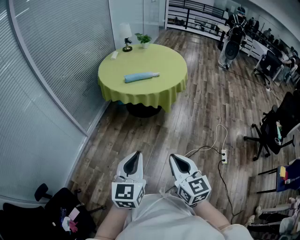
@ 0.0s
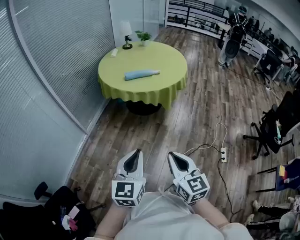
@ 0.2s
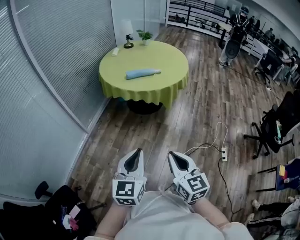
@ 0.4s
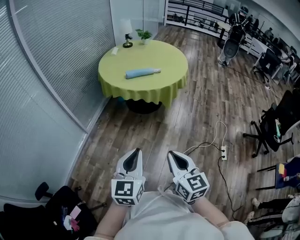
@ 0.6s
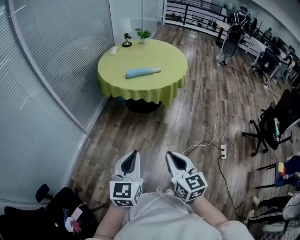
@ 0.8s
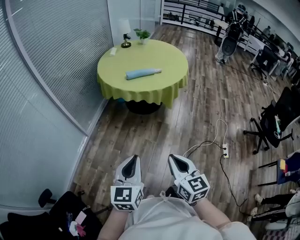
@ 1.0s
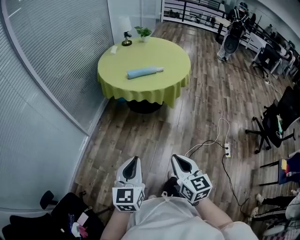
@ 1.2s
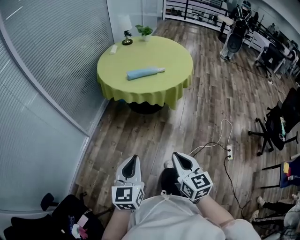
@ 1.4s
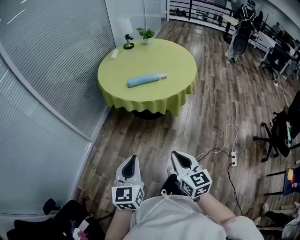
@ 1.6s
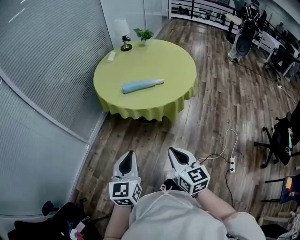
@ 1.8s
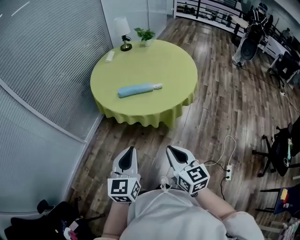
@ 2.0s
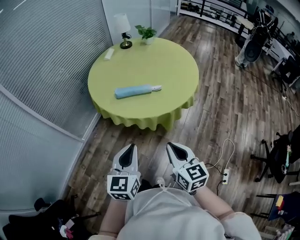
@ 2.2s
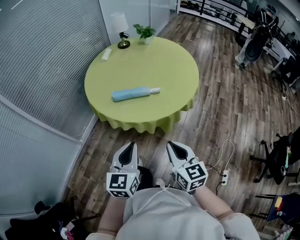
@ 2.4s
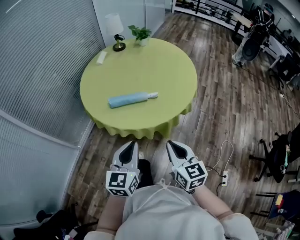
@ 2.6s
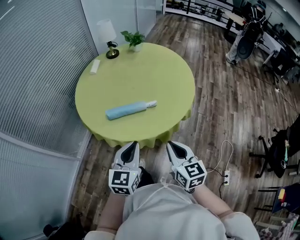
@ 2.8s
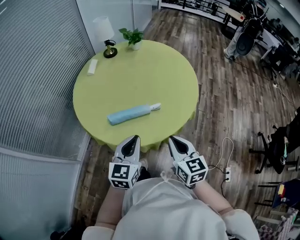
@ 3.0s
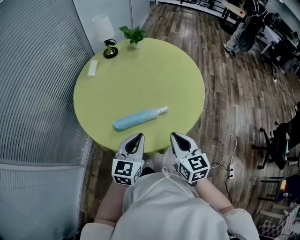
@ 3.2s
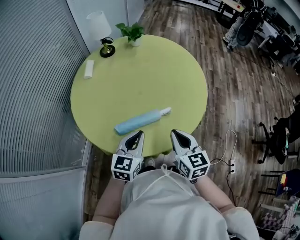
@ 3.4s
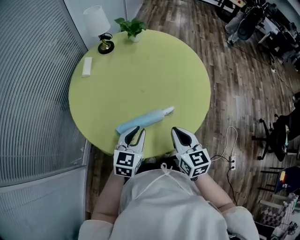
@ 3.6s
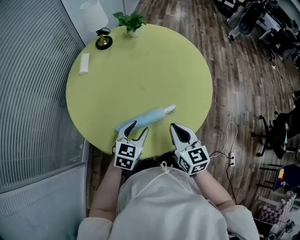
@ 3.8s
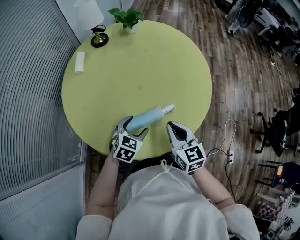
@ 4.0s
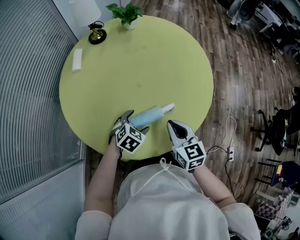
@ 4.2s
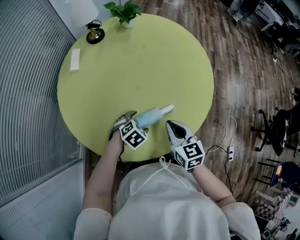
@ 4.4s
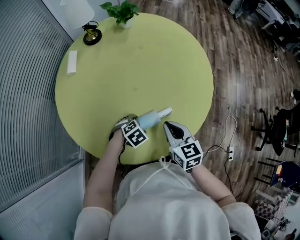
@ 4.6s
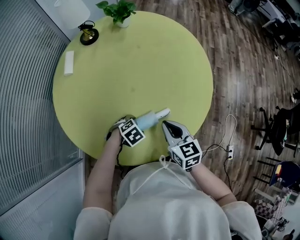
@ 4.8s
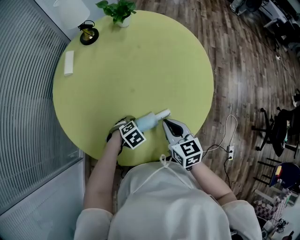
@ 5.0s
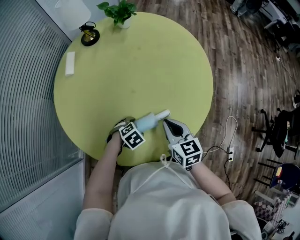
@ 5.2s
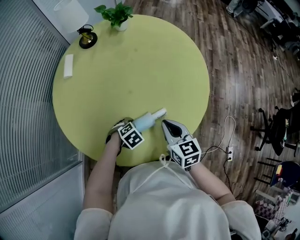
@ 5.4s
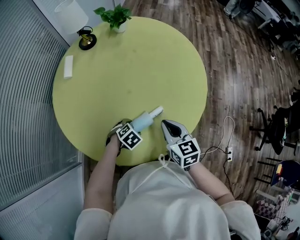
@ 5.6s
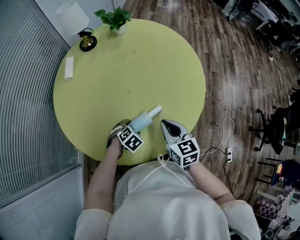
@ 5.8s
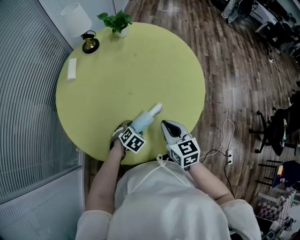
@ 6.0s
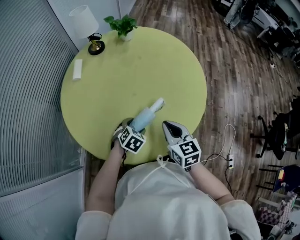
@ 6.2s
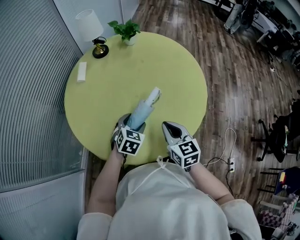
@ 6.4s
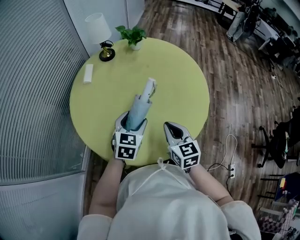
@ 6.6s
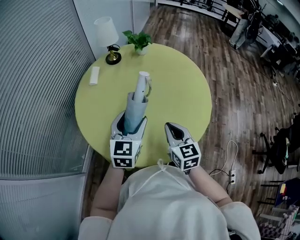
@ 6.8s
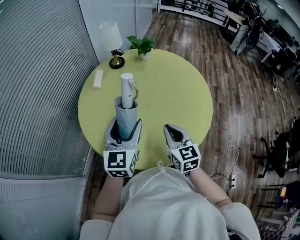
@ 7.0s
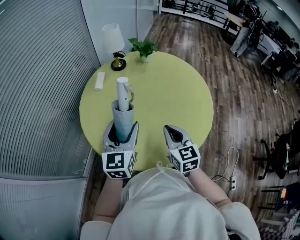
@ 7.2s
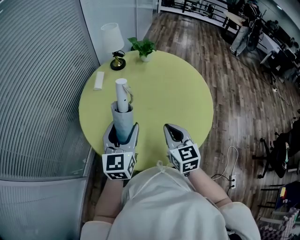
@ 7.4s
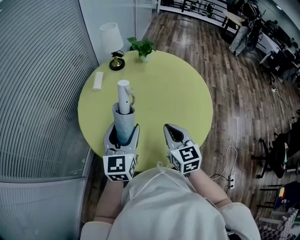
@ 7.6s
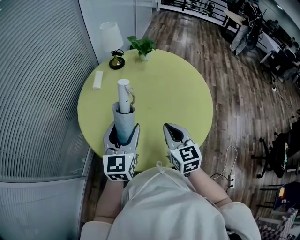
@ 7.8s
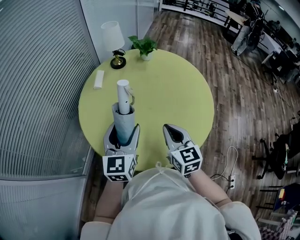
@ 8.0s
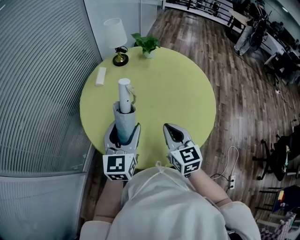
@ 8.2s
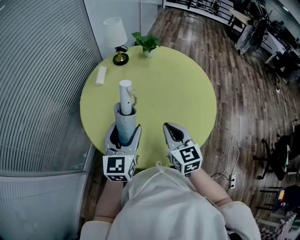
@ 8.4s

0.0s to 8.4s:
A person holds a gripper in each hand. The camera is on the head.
0.0s to 1.4s: The right gripper shifts roughly 10 cm forward and downward, while the left gripper moves forward, to the left and downward, roughly 15 cm.
1.4s to 2.8s: Both grippers are carried forward and to the right, some 50 cm.
2.8s to 4.2s: The left gripper moves forward and downward, some 40 cm, points its fingers about 40 degrees further downward, and opens. The right gripper goes roughly 30 cm forward and to the left.
4.2s to 5.6s: The right gripper ends up some 5 cm from where it was. The left gripper goes some 10 cm downward, and rotates some 20 degrees.
5.6s to 7.0s: The right gripper travels upward and to the left by roughly 15 cm. Meanwhile the left gripper goes about 35 cm upward, and tilts its fingers some 70 degrees upward.
7.0s to 8.4s: The grippers stay close to where they were, moving slightly.

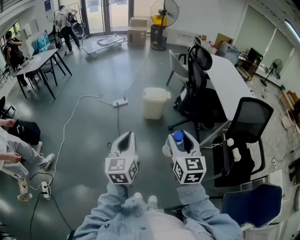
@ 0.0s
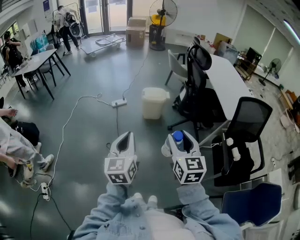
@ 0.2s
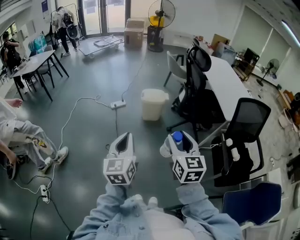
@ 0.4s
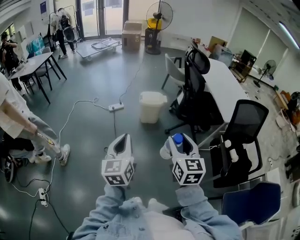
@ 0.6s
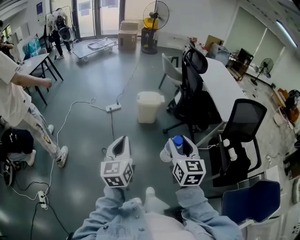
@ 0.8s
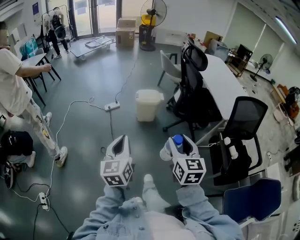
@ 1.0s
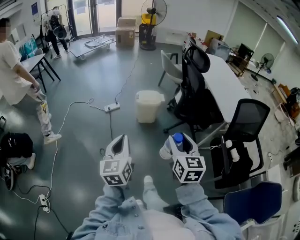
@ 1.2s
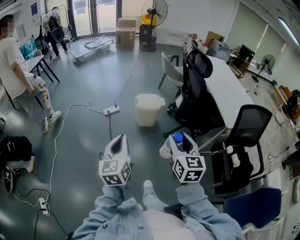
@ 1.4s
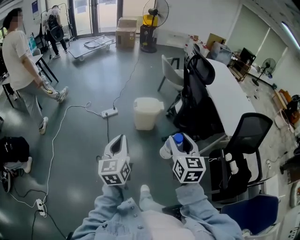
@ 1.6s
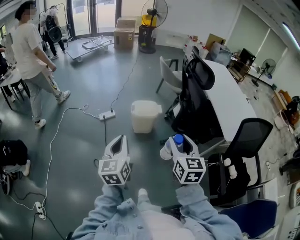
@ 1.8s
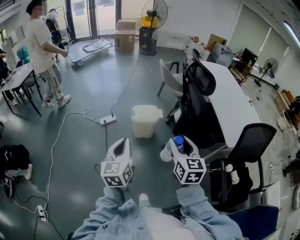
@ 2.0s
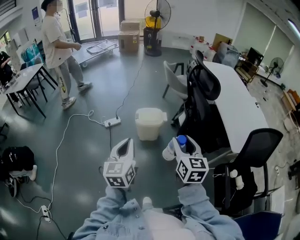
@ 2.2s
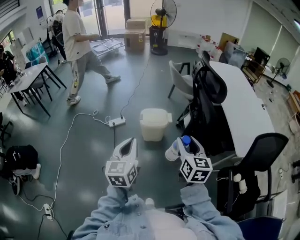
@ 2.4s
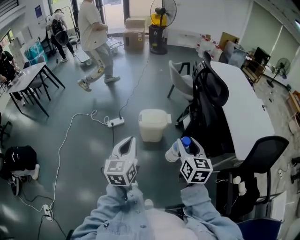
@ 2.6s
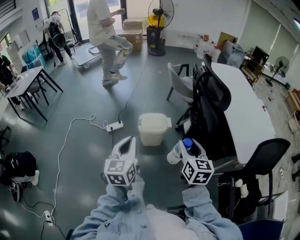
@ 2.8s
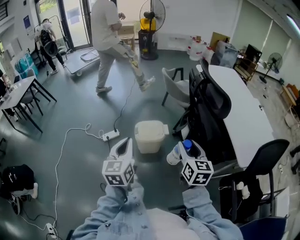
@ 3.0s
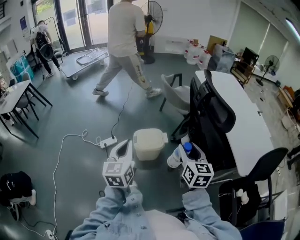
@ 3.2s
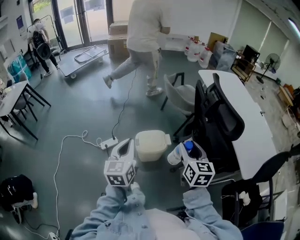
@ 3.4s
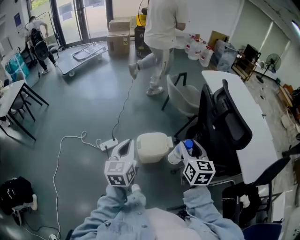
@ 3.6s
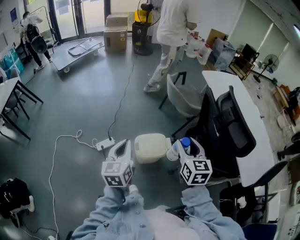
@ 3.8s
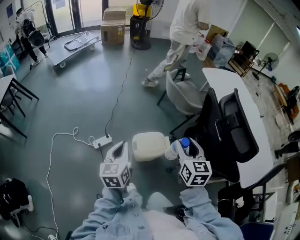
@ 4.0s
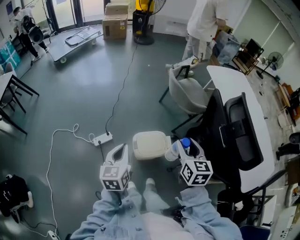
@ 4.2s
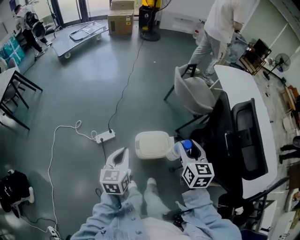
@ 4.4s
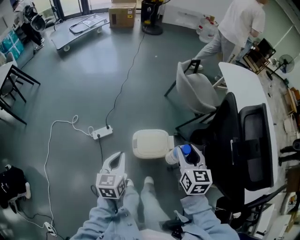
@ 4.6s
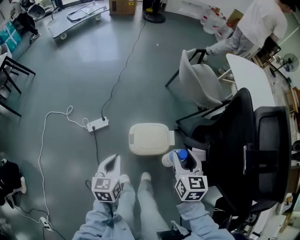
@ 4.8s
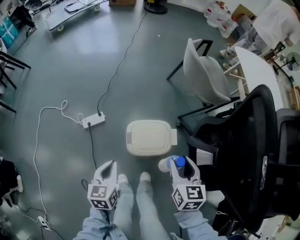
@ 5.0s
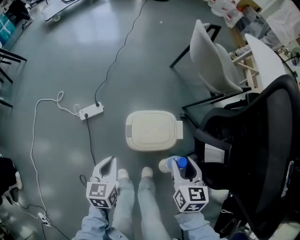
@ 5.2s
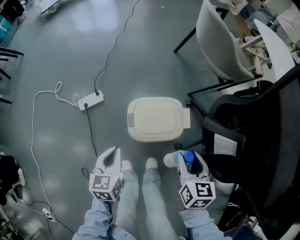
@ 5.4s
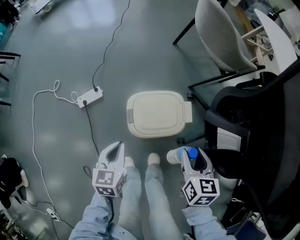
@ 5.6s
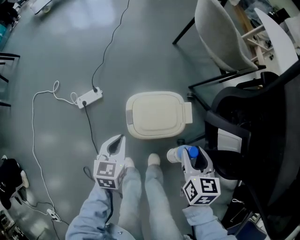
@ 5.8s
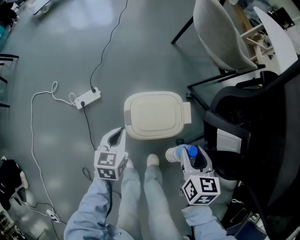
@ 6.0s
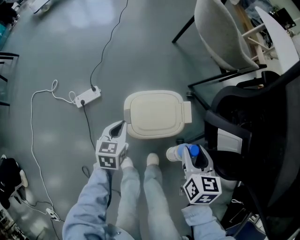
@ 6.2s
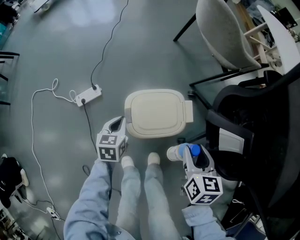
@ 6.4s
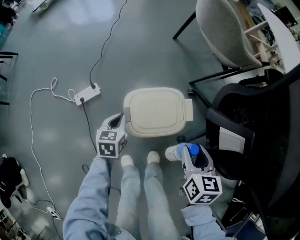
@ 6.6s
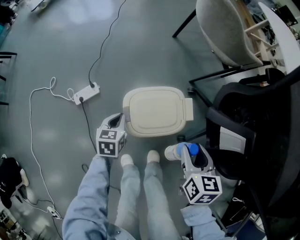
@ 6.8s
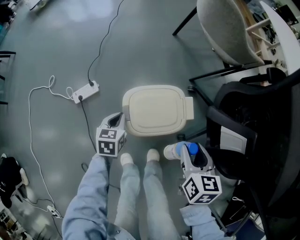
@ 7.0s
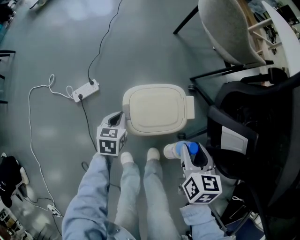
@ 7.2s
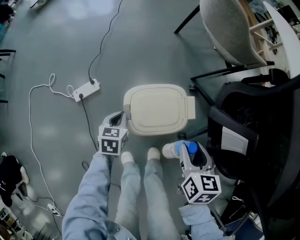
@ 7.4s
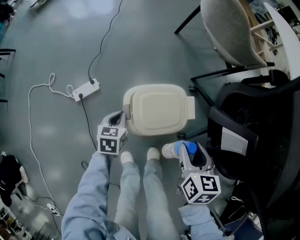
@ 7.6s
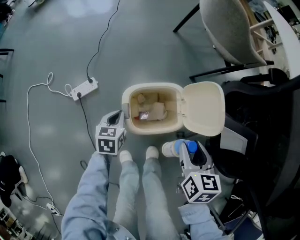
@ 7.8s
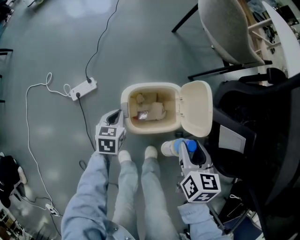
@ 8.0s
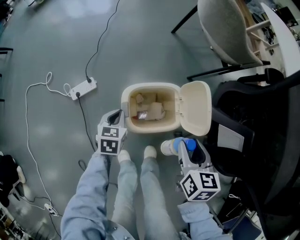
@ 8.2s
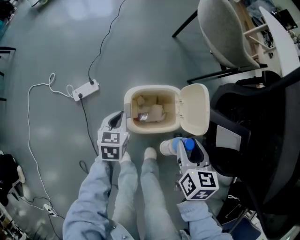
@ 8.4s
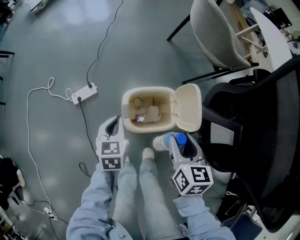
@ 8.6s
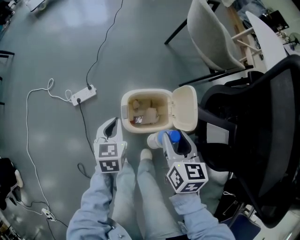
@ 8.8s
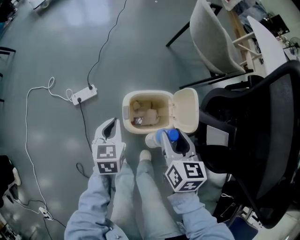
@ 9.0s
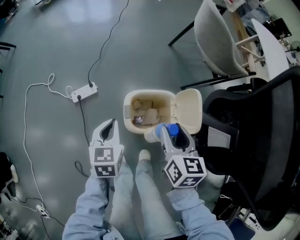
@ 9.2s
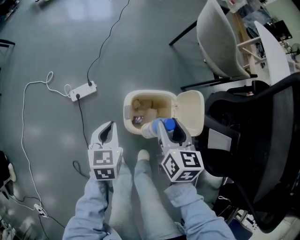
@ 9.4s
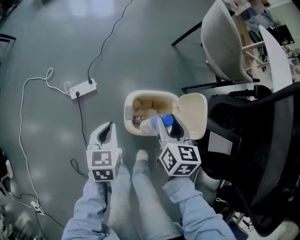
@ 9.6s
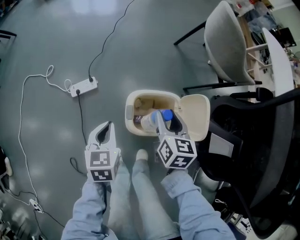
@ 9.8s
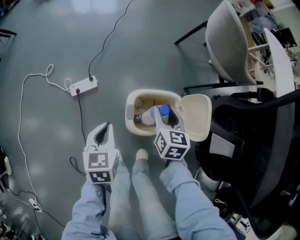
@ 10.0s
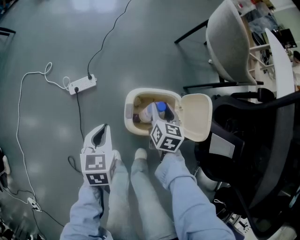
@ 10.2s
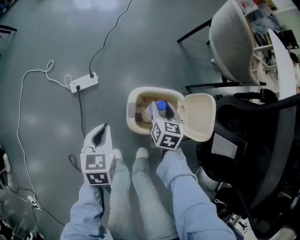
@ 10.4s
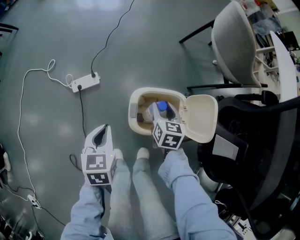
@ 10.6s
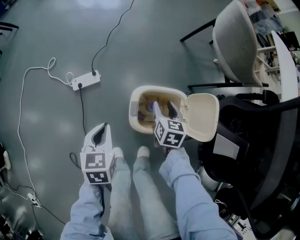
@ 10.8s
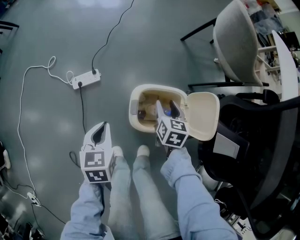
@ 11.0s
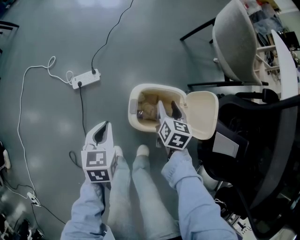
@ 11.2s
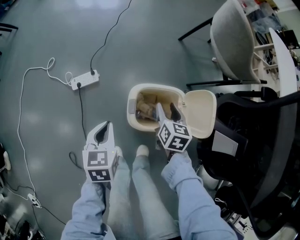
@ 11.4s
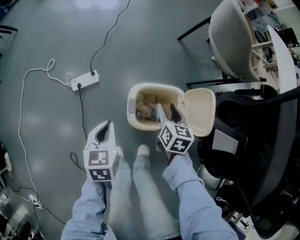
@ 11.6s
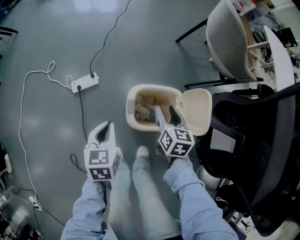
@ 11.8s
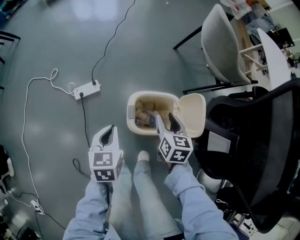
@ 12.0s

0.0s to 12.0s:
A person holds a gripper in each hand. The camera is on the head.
0.0s to 1.6s: Both grippers travel together forward, approximately 20 cm.
1.6s to 3.0s: The two grippers go about 30 cm forward.
3.0s to 4.4s: The left gripper shifts approximately 30 cm forward and downward; the right gripper heads forward, covering roughly 30 cm.
4.4s to 6.0s: Both grippers move downward, approximately 35 cm. The right gripper turns by roughly 20 degrees.
6.0s to 7.6s: The left gripper moves downward, roughly 10 cm.
7.6s to 9.0s: The right gripper travels upward and to the left by about 10 cm. The left gripper is displaced upward by approximately 15 cm.
9.0s to 10.4s: The right gripper shifts roughly 20 cm downward and forward, while the left gripper heads to the left, covering roughly 5 cm.
10.4s to 12.0s: The right gripper is displaced upward by some 5 cm.

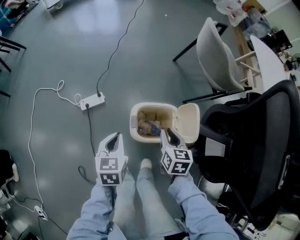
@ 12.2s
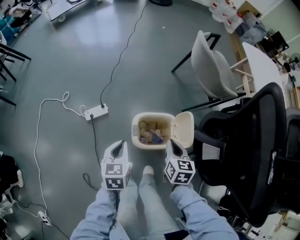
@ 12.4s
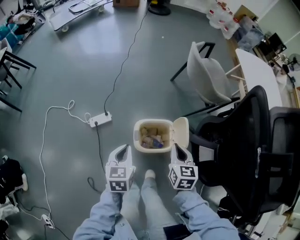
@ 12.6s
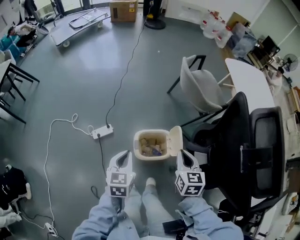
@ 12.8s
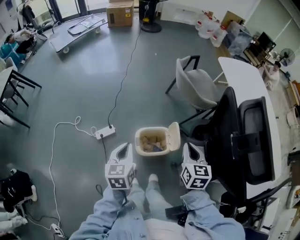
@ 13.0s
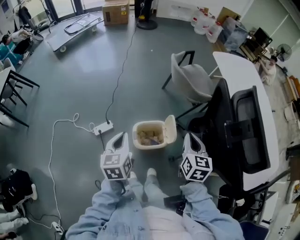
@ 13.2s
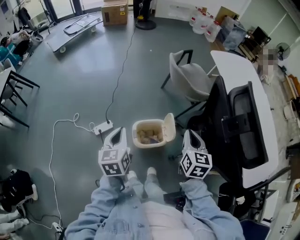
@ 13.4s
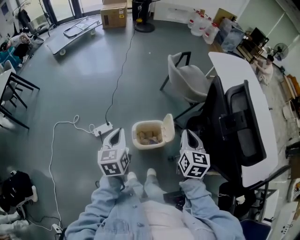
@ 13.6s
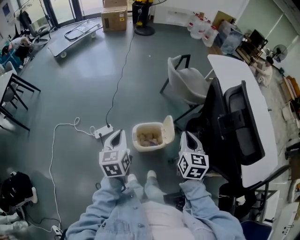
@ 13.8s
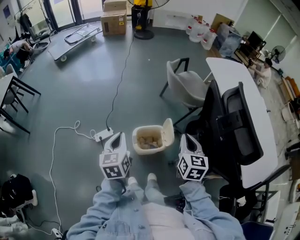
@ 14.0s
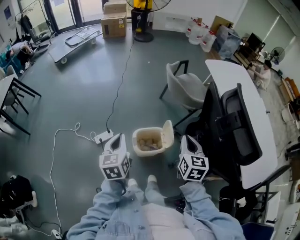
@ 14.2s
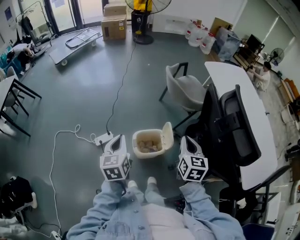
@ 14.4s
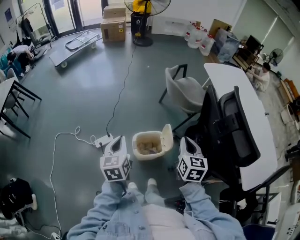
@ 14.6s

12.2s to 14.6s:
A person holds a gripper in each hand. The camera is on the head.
12.2s to 13.4s: Both grippers travel together upward, roughly 30 cm. The right gripper turns by roughly 20 degrees, and closes.
13.4s to 14.6s: The grippers stay close to where they were, moving slightly.

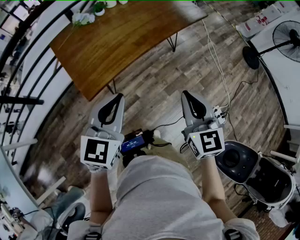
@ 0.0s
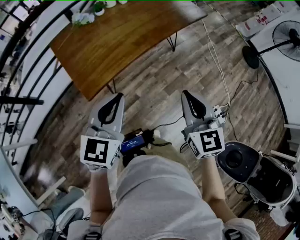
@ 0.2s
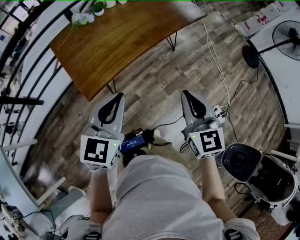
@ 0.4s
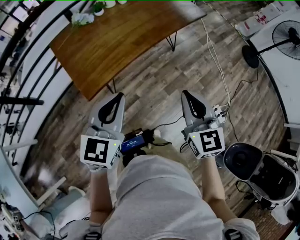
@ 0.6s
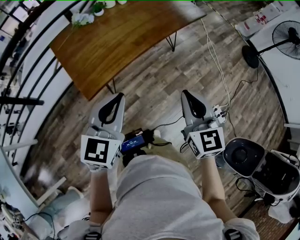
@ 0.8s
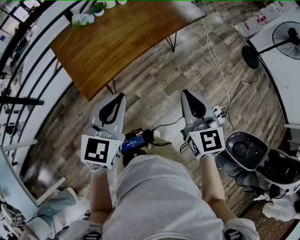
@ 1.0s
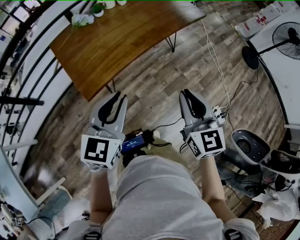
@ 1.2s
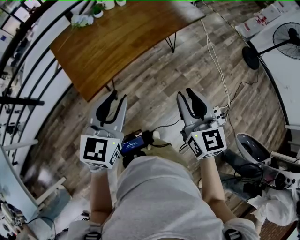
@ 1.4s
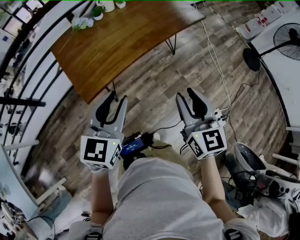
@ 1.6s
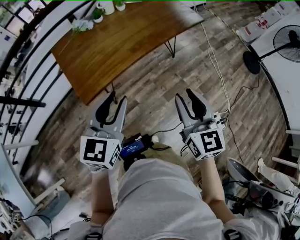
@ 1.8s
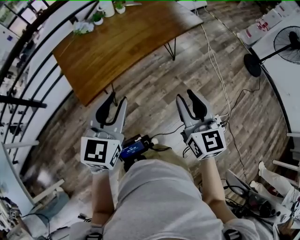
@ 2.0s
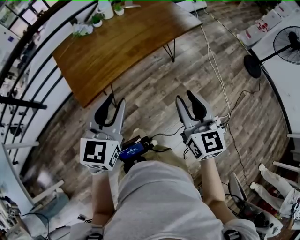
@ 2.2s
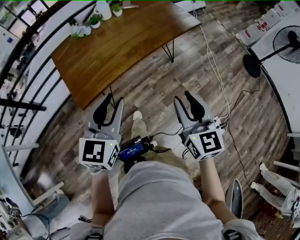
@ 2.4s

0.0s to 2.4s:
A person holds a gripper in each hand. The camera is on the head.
0.0s to 1.2s: The grippers move only a little.
1.2s to 2.4s: The right gripper shifts approximately 5 cm to the right, and opens.
